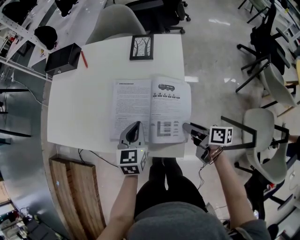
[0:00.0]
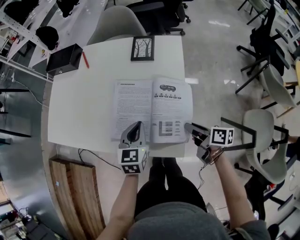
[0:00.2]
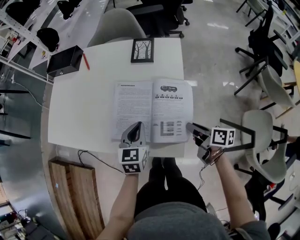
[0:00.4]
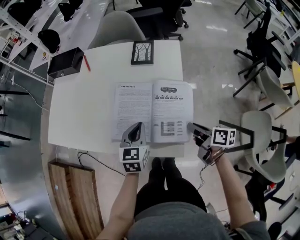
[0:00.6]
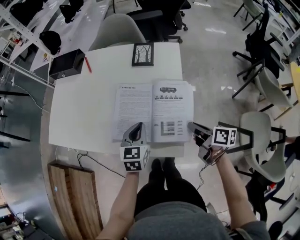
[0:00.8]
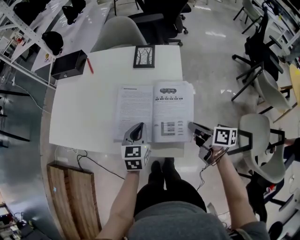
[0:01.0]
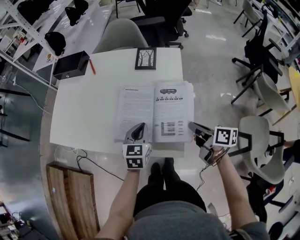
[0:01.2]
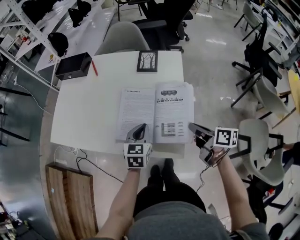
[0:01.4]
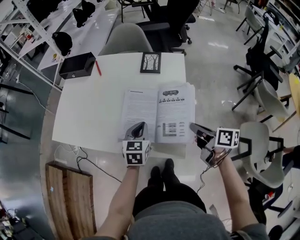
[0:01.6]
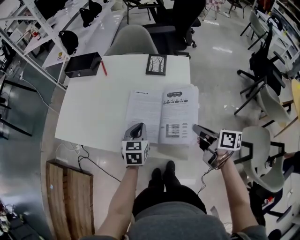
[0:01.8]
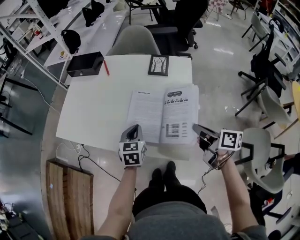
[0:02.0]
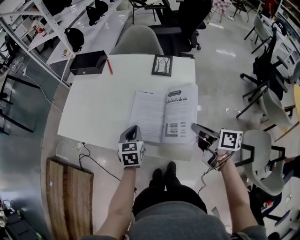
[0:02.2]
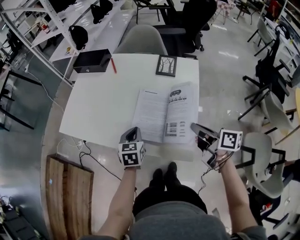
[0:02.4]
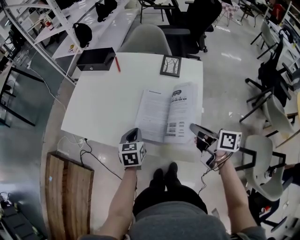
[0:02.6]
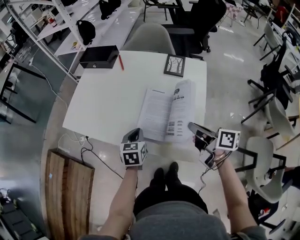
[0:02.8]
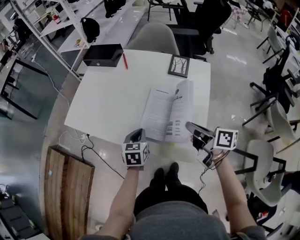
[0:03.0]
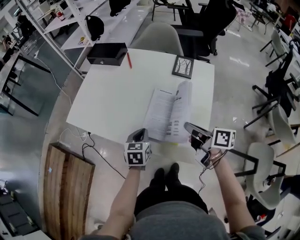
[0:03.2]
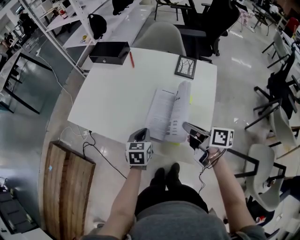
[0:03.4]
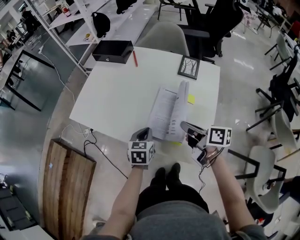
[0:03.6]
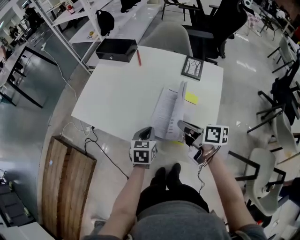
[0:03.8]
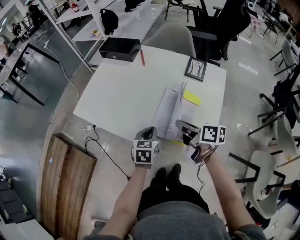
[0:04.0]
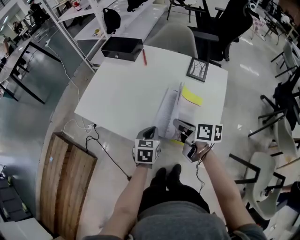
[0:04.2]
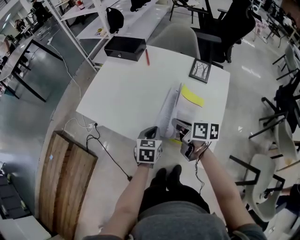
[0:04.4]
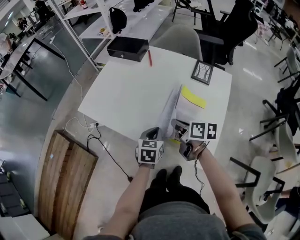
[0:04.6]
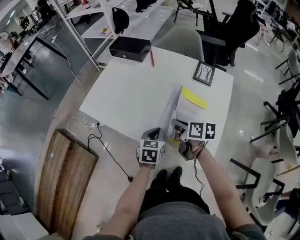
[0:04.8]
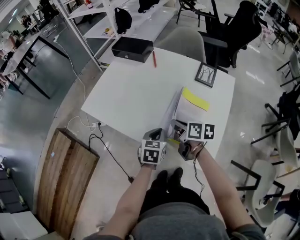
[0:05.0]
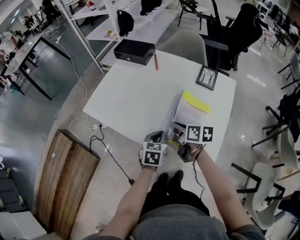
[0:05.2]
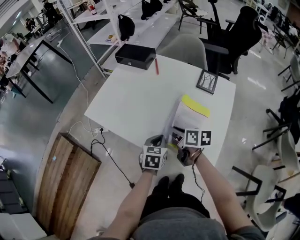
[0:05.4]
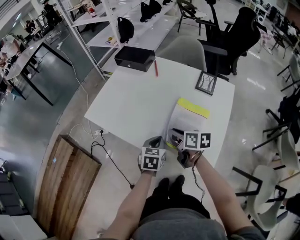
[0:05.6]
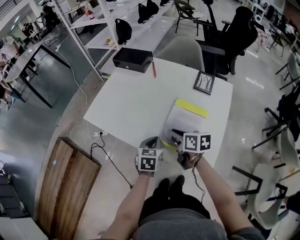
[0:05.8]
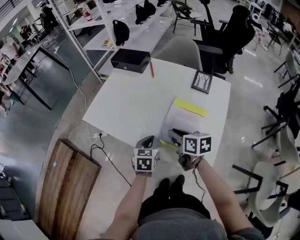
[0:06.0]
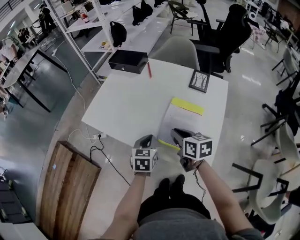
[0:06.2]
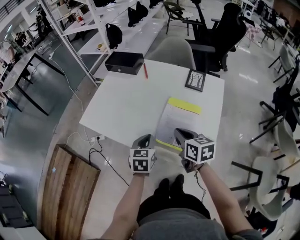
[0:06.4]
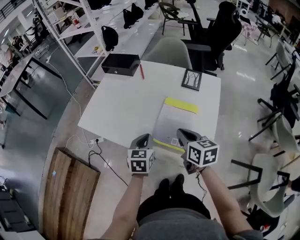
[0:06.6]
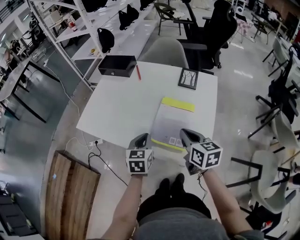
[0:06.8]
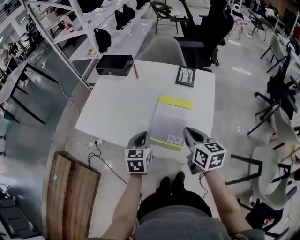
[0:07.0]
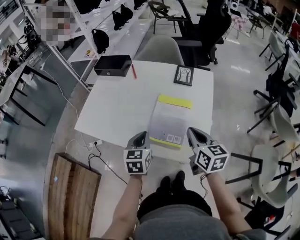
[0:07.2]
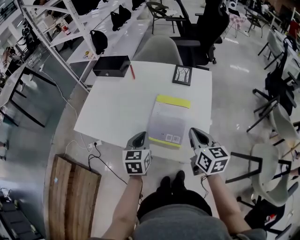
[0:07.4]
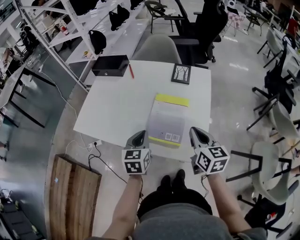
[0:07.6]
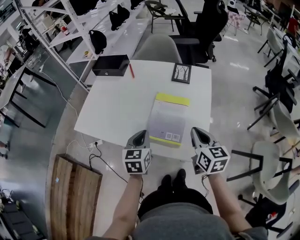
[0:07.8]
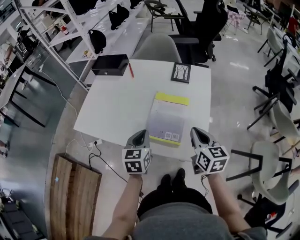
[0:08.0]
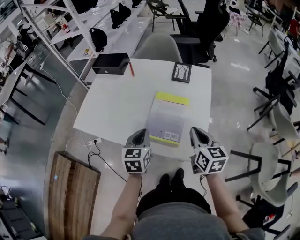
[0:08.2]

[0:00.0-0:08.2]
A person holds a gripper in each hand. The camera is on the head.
0:00.0 to 0:01.6: The right gripper travels upward by approximately 10 cm, and closes up.
0:01.6 to 0:03.2: The left gripper heads to the left, covering roughly 10 cm. Meanwhile the right gripper travels to the left and forward by approximately 15 cm.
0:03.2 to 0:05.0: The right gripper moves to the left, forward and downward, about 15 cm, and turns by approximately 20 degrees.
0:05.0 to 0:06.6: The right gripper goes about 10 cm upward and backward, and changes its angle by about 30 degrees. Meanwhile the left gripper travels upward by approximately 5 cm.
0:06.6 to 0:08.2: The right gripper travels to the right by about 10 cm.

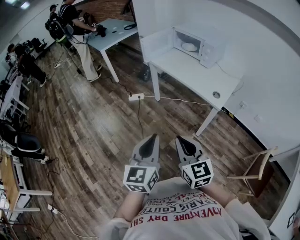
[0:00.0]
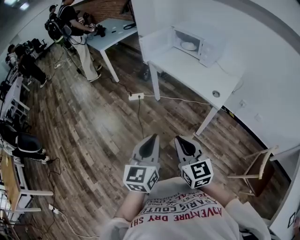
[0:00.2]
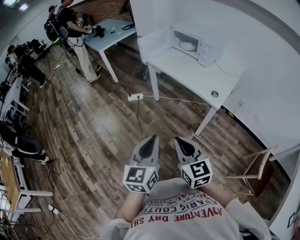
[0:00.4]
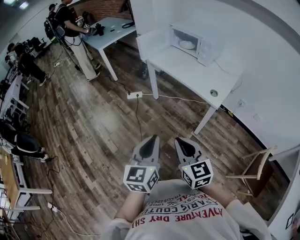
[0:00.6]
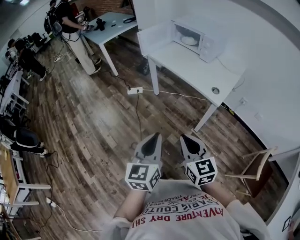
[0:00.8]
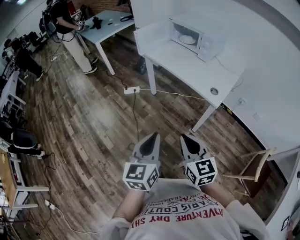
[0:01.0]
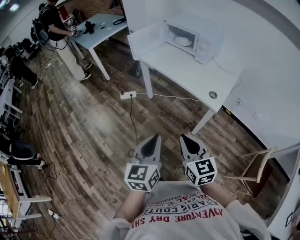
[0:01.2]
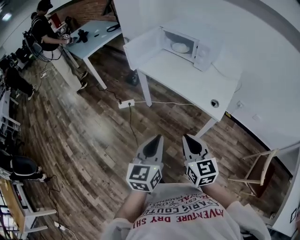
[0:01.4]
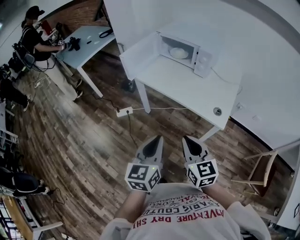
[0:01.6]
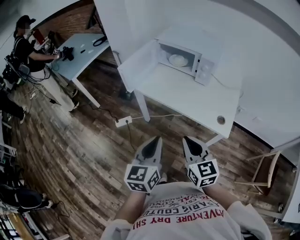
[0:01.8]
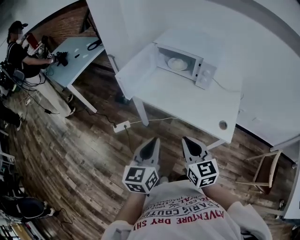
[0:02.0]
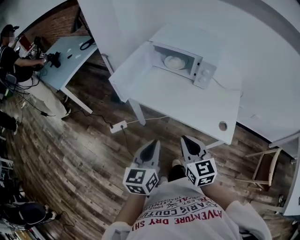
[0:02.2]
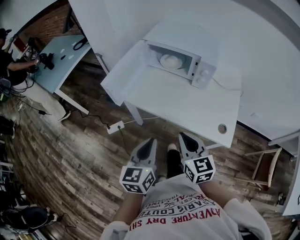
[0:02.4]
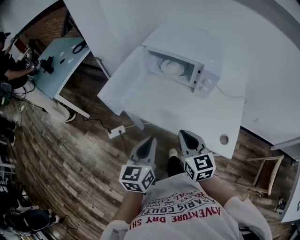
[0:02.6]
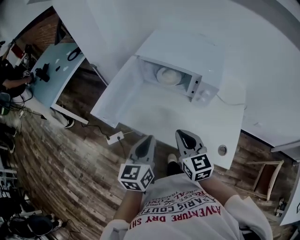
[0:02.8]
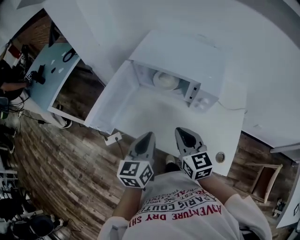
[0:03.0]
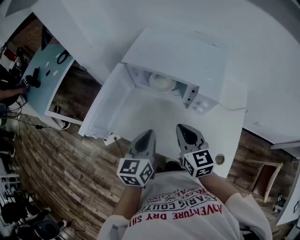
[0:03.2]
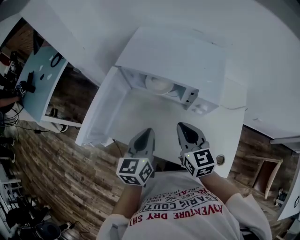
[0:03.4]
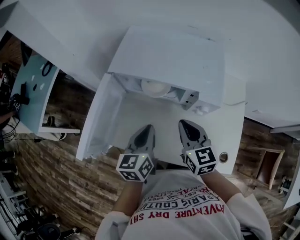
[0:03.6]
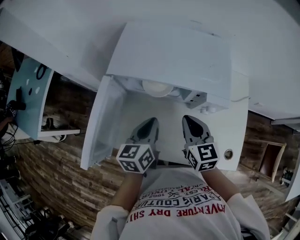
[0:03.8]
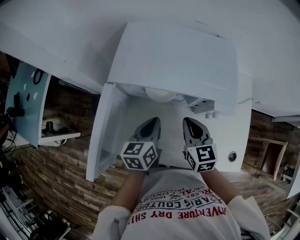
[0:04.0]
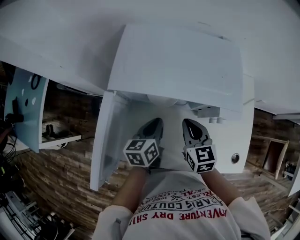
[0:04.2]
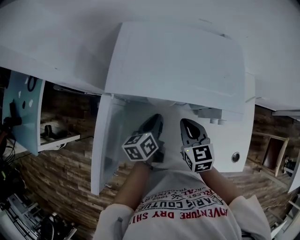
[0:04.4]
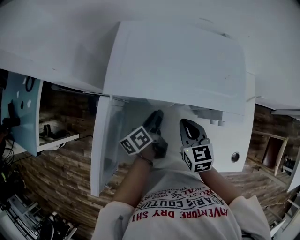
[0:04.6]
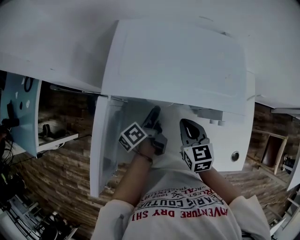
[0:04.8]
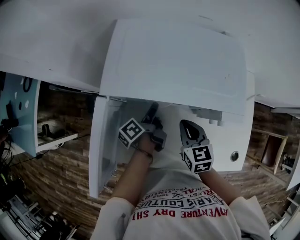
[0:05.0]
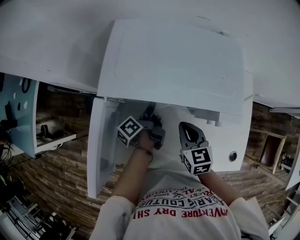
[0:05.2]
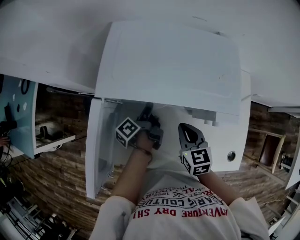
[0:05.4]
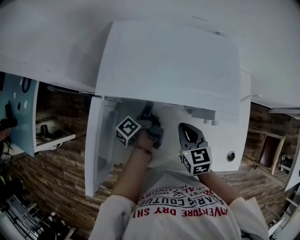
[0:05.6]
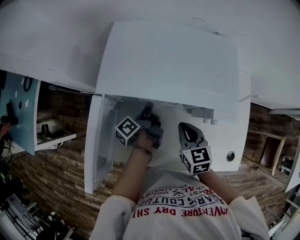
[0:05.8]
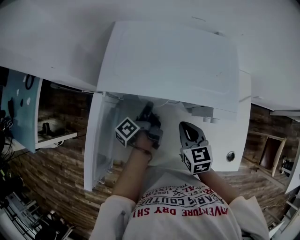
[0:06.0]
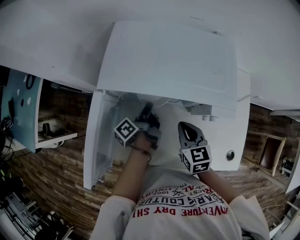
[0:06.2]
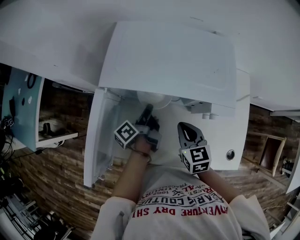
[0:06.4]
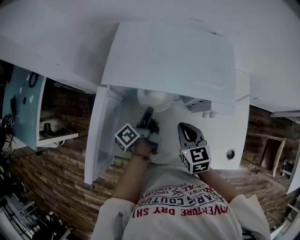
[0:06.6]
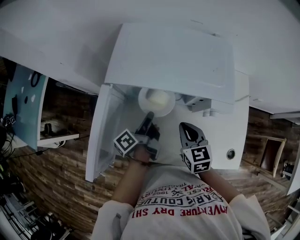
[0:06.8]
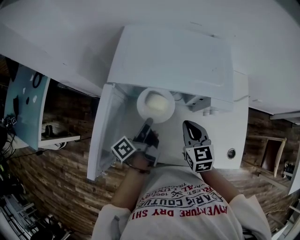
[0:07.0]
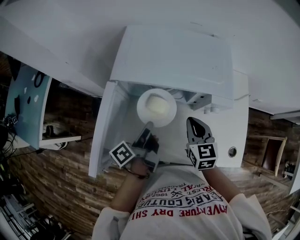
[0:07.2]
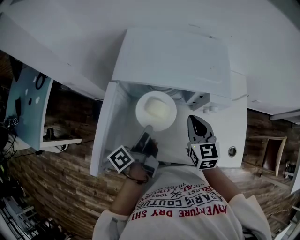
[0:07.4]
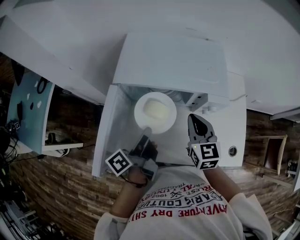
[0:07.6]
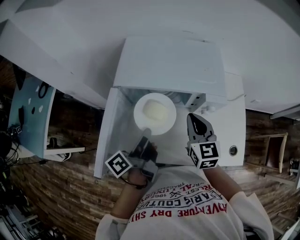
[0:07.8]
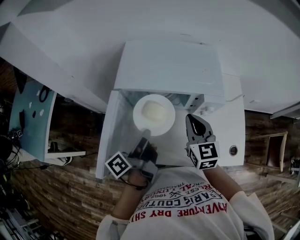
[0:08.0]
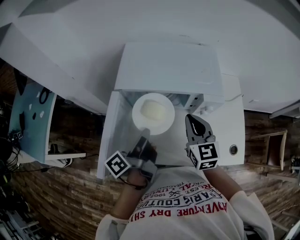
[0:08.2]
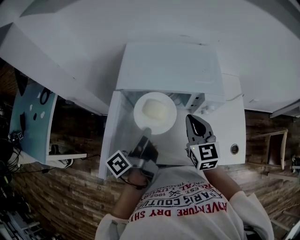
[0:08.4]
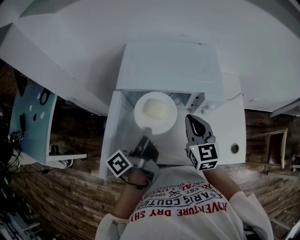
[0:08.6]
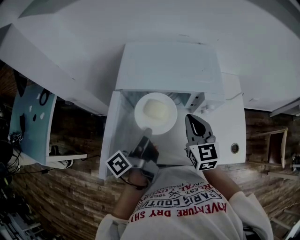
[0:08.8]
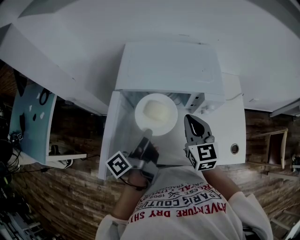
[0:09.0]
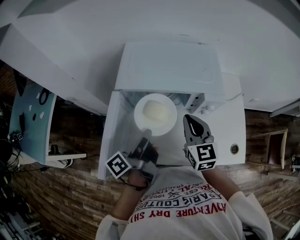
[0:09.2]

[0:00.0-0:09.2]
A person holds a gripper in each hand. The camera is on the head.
0:00.0 to 0:01.6: The grippers both shift forward by roughly 25 cm.
0:01.6 to 0:03.0: Both grippers are carried forward, approximately 40 cm.
0:03.0 to 0:04.6: The two grippers go some 25 cm forward and downward. The left gripper rotates around the line of its fingers by roughly 40 degrees, counterclockwise from behind, and opens its fingers, while the right gripper changes its angle by some 20 degrees.
0:04.6 to 0:06.2: The left gripper changes its angle by roughly 30 degrees.
0:06.2 to 0:07.6: The right gripper moves upward, about 10 cm; the left gripper moves upward and backward, about 20 cm.
0:07.6 to 0:09.2: The grippers stay close to where they were, moving slightly.

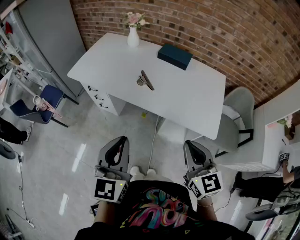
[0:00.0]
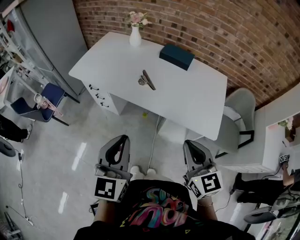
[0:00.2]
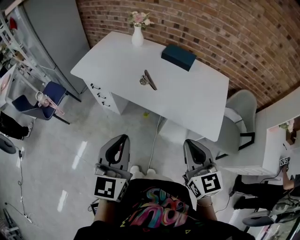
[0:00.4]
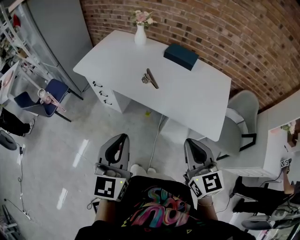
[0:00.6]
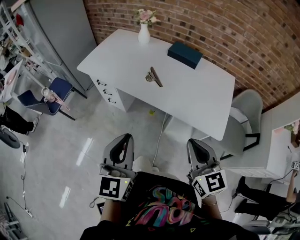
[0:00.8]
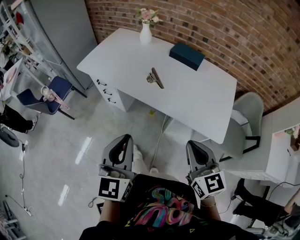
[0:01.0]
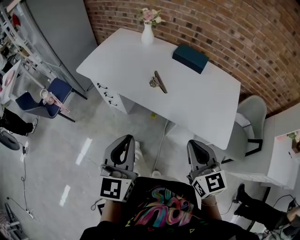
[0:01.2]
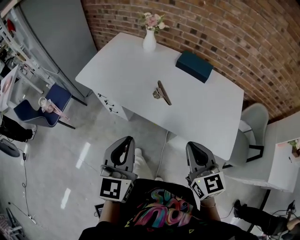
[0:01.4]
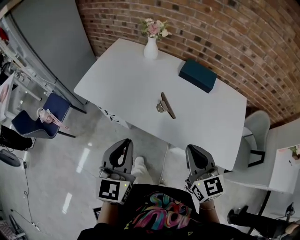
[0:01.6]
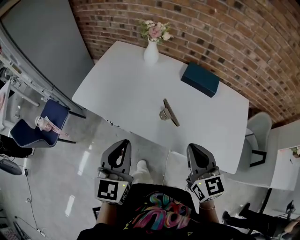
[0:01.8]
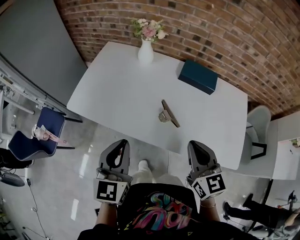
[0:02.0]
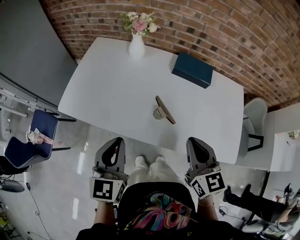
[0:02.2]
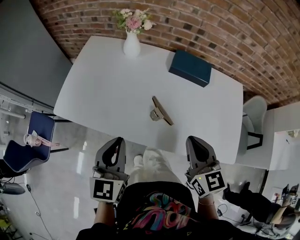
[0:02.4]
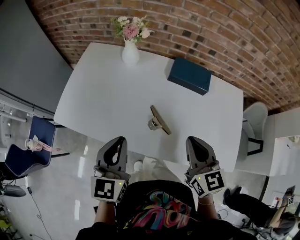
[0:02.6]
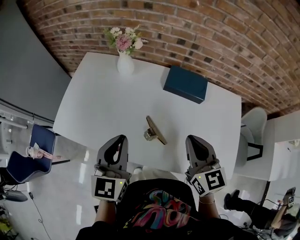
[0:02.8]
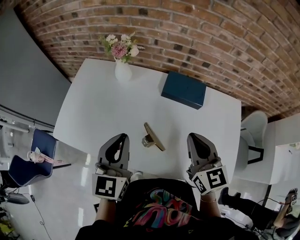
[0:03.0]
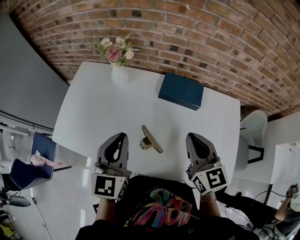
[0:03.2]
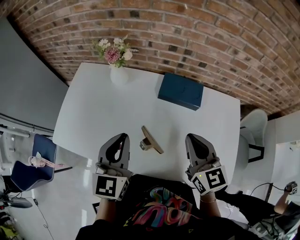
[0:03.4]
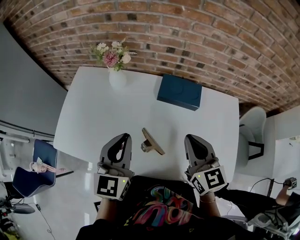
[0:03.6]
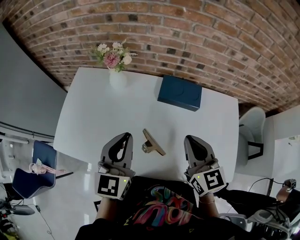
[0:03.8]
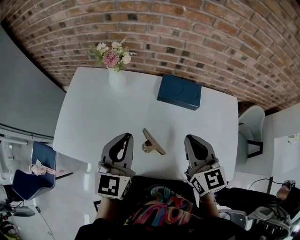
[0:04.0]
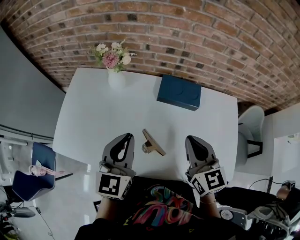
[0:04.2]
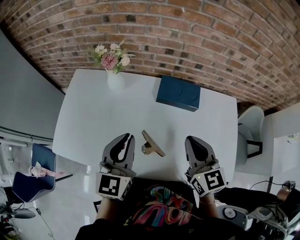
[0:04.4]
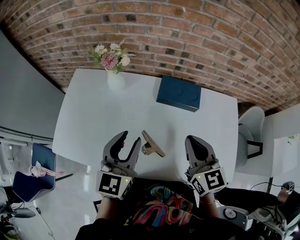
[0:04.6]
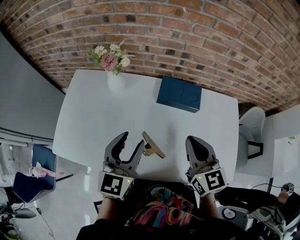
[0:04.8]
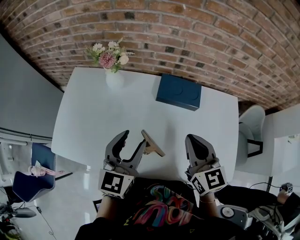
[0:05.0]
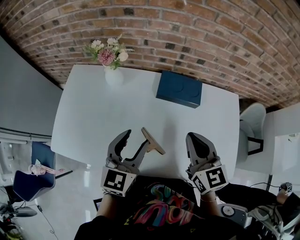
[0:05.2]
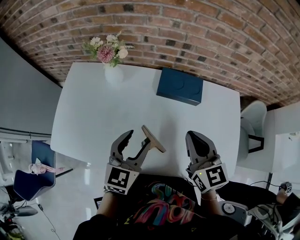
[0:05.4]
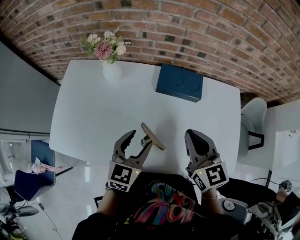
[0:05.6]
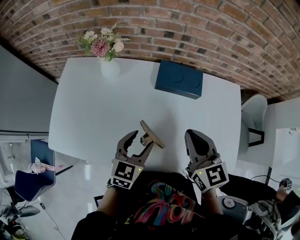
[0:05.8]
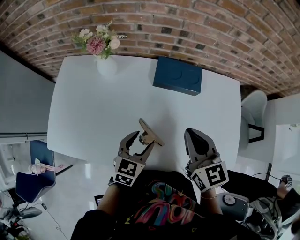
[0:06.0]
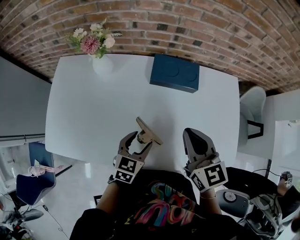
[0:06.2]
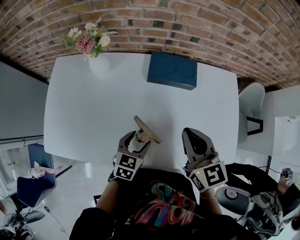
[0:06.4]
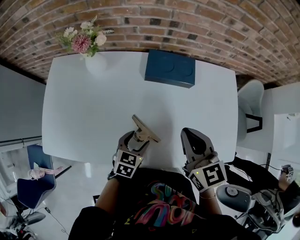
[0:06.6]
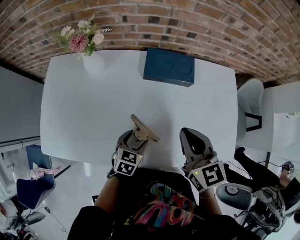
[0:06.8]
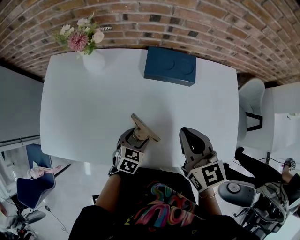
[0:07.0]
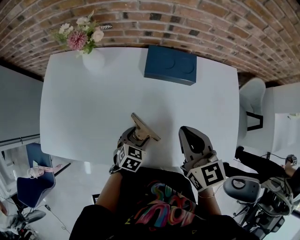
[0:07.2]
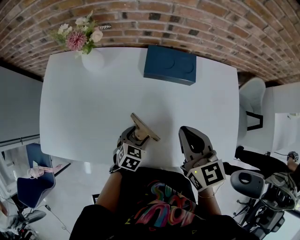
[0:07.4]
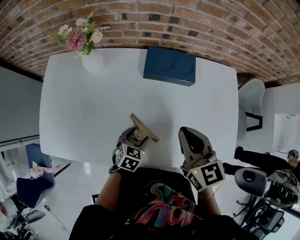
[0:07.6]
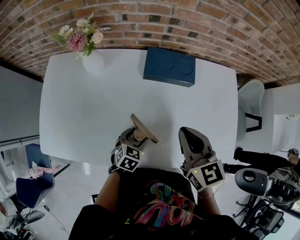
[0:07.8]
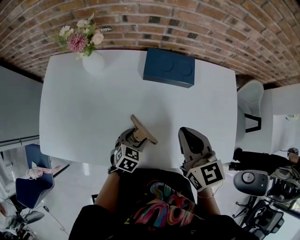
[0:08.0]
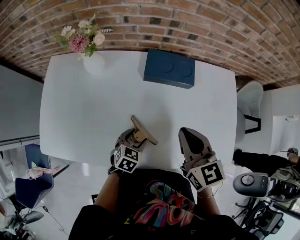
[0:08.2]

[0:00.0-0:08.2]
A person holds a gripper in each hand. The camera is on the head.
0:00.0 to 0:01.6: Both grippers move forward, some 20 cm.
0:01.6 to 0:03.2: Both grippers move forward, approximately 30 cm.
0:03.2 to 0:05.0: The left gripper ends up about 5 cm from where it was, and opens up.
0:05.0 to 0:06.6: The right gripper heads downward, covering about 5 cm. Meanwhile the left gripper shifts about 25 cm downward, and angles its fingers downward, by roughly 30 degrees.
0:06.6 to 0:08.2: The grippers move only a little.
